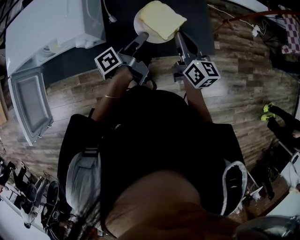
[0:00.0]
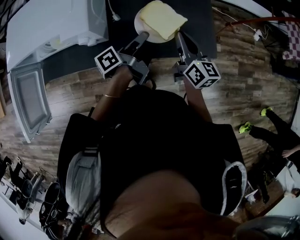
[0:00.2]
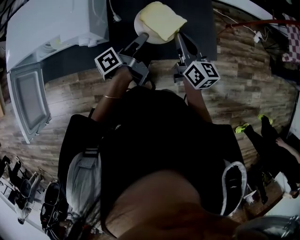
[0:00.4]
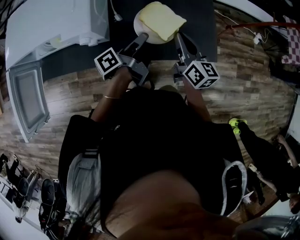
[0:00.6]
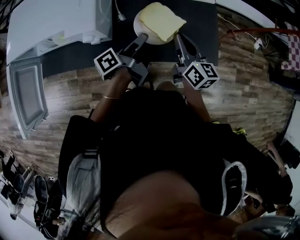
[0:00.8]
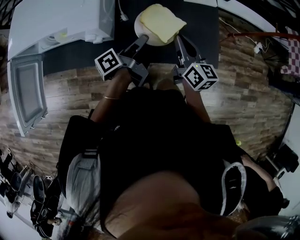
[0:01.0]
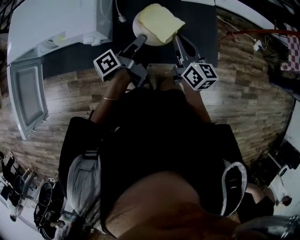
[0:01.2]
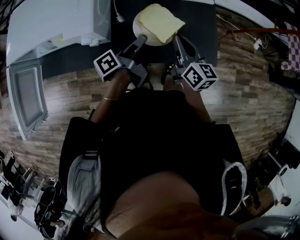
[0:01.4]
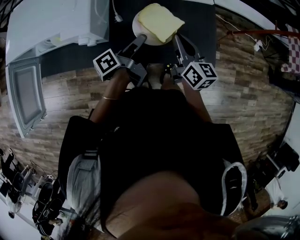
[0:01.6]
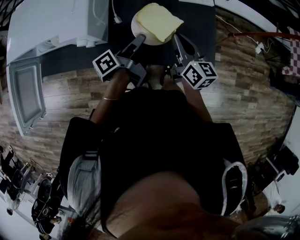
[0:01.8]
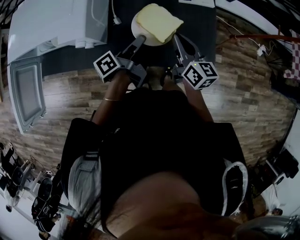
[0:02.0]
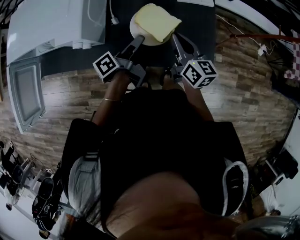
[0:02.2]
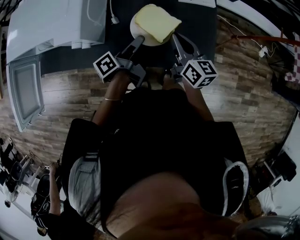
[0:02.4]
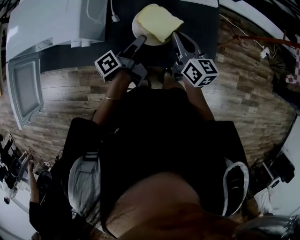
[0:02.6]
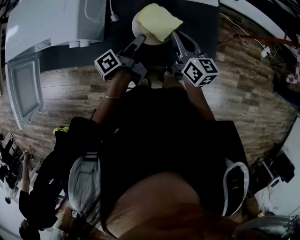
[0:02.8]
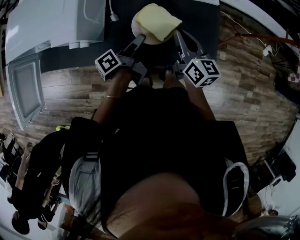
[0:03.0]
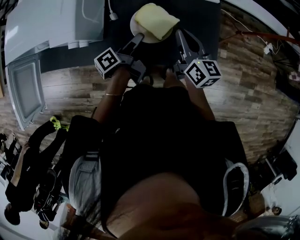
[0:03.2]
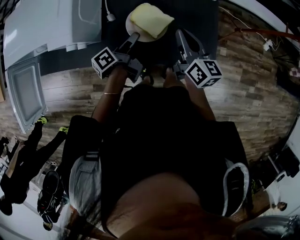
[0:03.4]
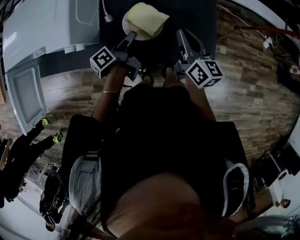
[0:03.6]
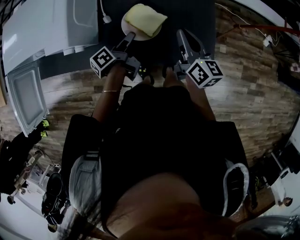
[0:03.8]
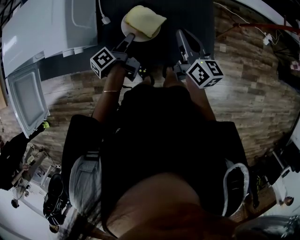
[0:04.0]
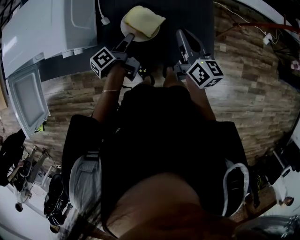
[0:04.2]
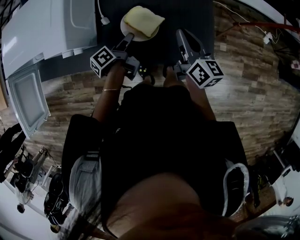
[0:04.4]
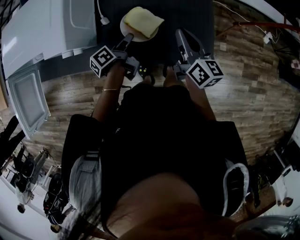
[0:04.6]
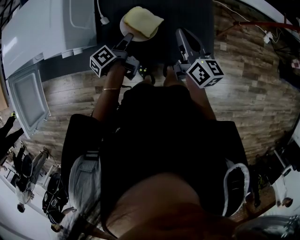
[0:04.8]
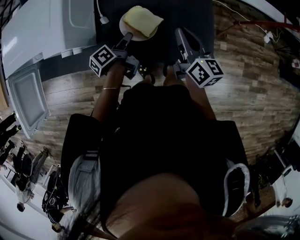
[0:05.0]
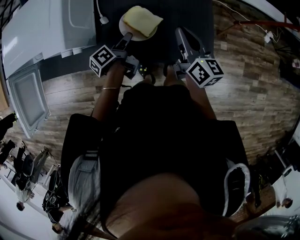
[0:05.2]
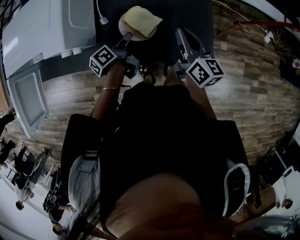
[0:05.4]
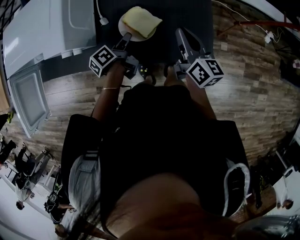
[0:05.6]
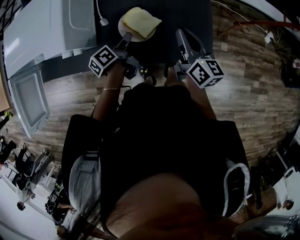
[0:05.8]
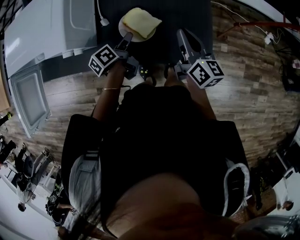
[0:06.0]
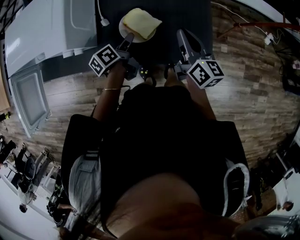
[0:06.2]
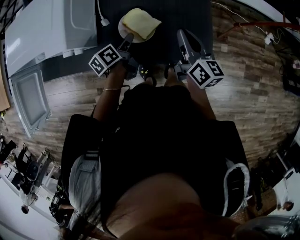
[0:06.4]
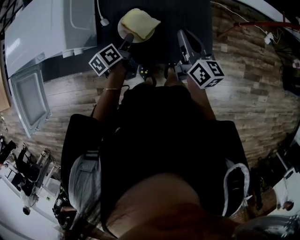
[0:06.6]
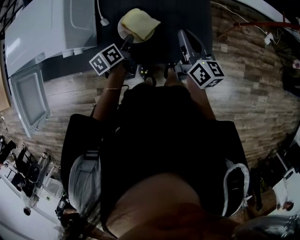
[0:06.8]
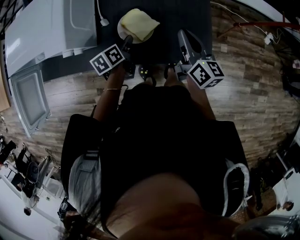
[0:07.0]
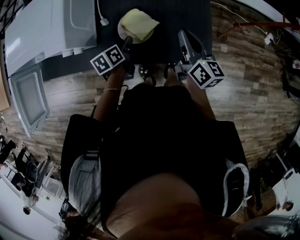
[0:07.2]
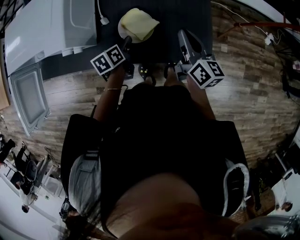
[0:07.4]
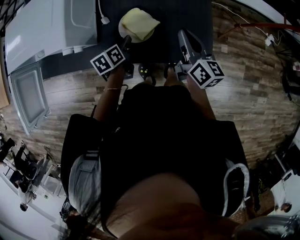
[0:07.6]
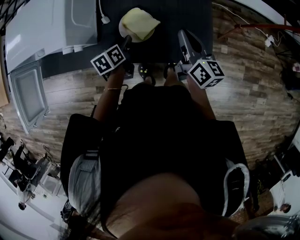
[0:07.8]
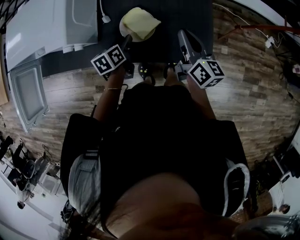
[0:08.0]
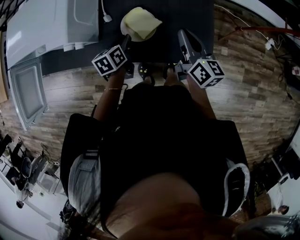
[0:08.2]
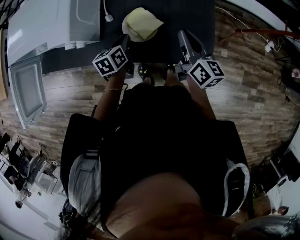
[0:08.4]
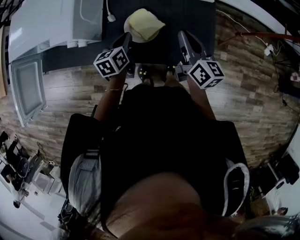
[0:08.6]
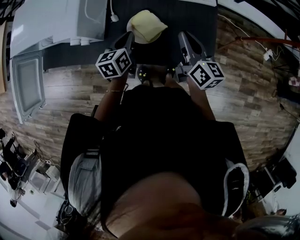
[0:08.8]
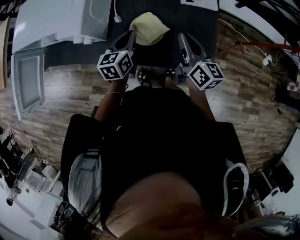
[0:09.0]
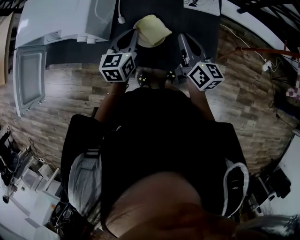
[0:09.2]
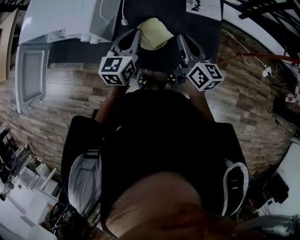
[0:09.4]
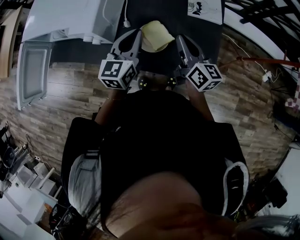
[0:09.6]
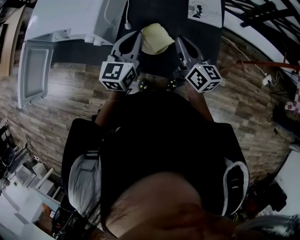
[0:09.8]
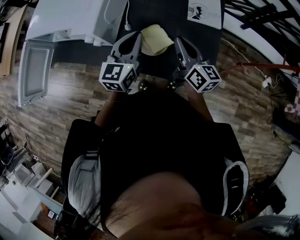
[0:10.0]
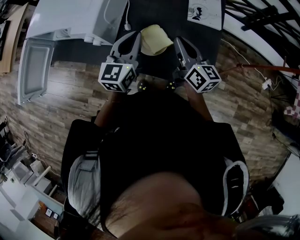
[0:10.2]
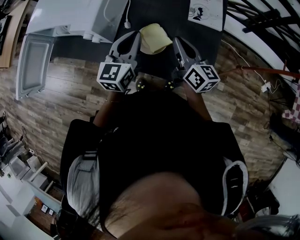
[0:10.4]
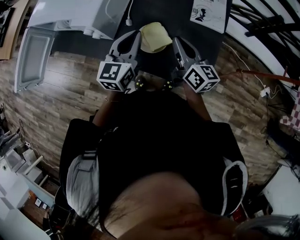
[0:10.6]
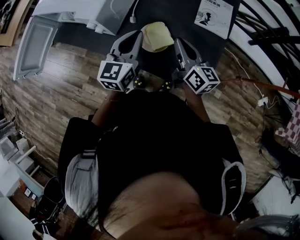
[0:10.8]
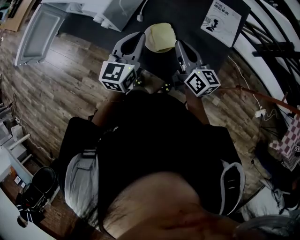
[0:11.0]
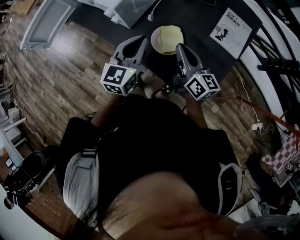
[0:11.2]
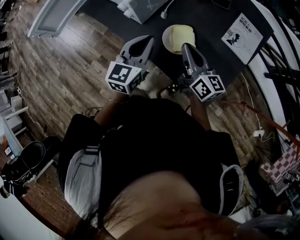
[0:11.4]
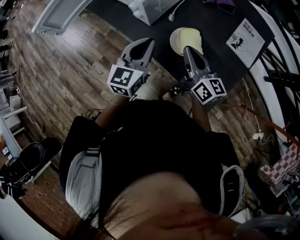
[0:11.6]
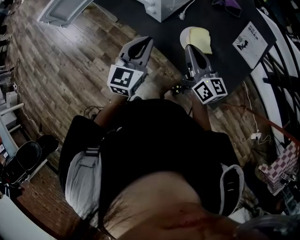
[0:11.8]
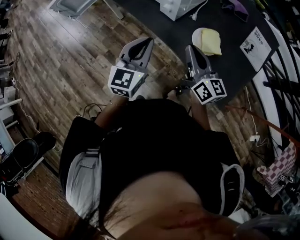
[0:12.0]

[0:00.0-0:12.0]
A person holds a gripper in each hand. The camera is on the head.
0:00.0 to 0:01.6: The grippers stay close to where they were, moving slightly.
0:01.6 to 0:03.0: There are only small adjustments of the grippers.
0:03.0 to 0:04.4: The left gripper moves downward, roughly 5 cm.
0:04.4 to 0:06.0: The grippers stay close to where they were, moving slightly.
0:06.0 to 0:07.6: The left gripper changes its angle by some 30 degrees.
0:07.6 to 0:09.0: The left gripper shifts roughly 10 cm upward, changes its angle by roughly 30 degrees, and closes.
0:09.0 to 0:10.4: The left gripper shifts approximately 10 cm upward, and rotates approximately 20 degrees.
0:10.4 to 0:12.0: The left gripper shifts approximately 25 cm to the left and backward, and turns by some 20 degrees; the right gripper shifts approximately 20 cm to the left, and swivels some 30 degrees.

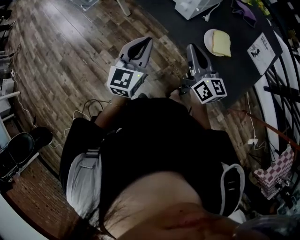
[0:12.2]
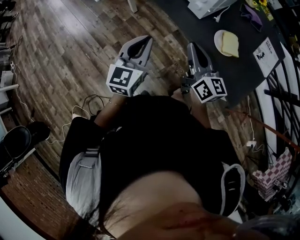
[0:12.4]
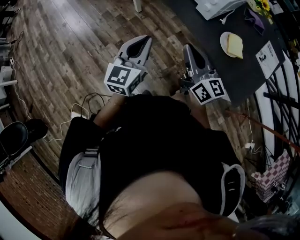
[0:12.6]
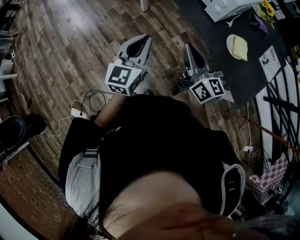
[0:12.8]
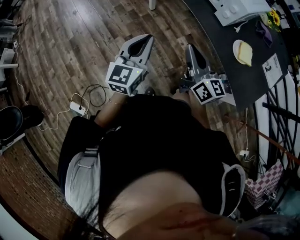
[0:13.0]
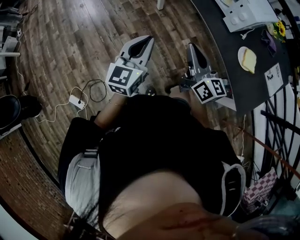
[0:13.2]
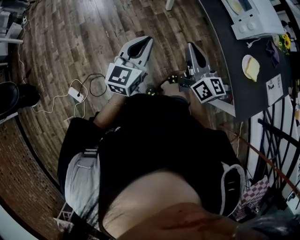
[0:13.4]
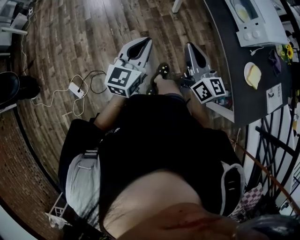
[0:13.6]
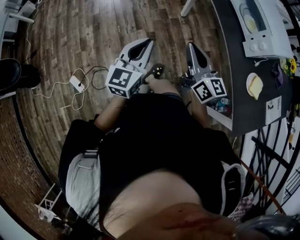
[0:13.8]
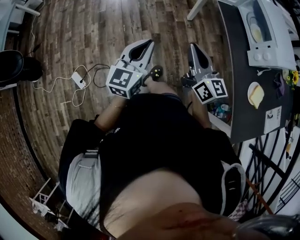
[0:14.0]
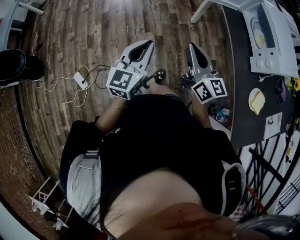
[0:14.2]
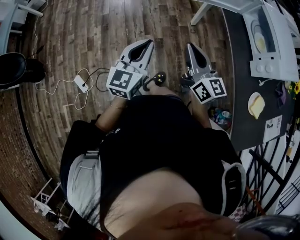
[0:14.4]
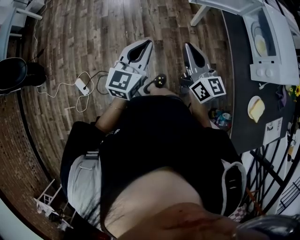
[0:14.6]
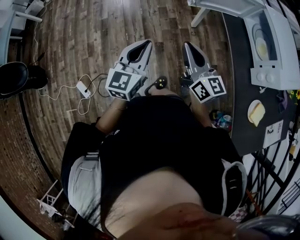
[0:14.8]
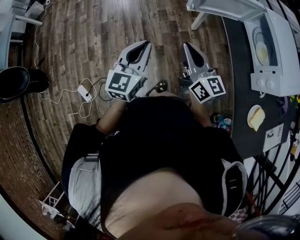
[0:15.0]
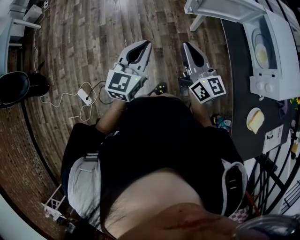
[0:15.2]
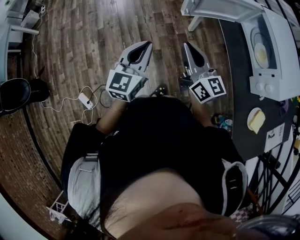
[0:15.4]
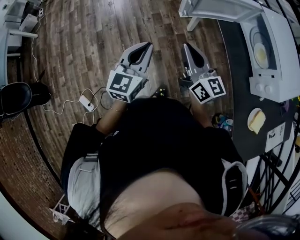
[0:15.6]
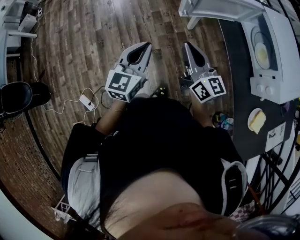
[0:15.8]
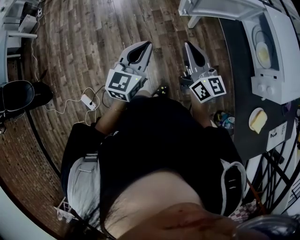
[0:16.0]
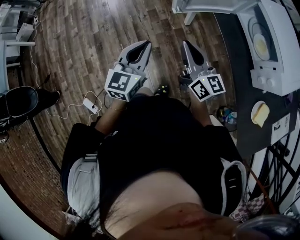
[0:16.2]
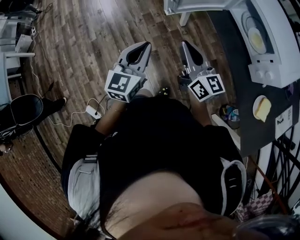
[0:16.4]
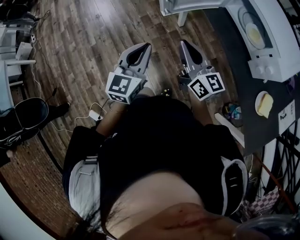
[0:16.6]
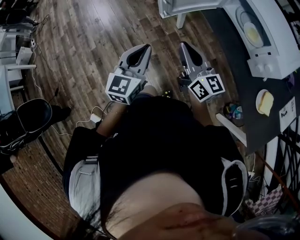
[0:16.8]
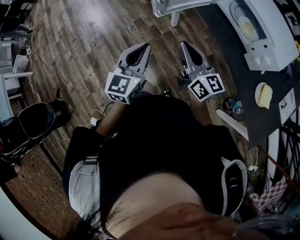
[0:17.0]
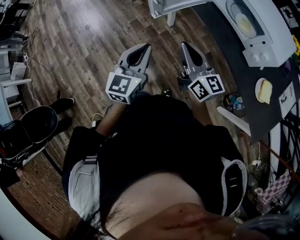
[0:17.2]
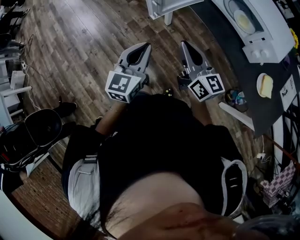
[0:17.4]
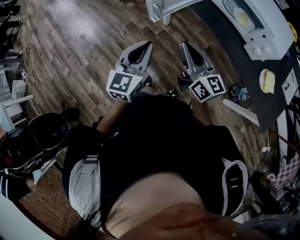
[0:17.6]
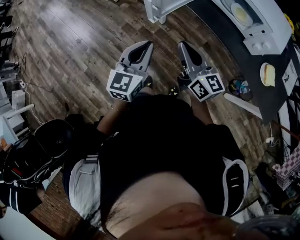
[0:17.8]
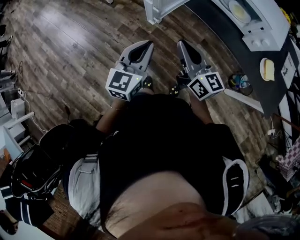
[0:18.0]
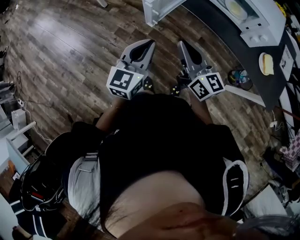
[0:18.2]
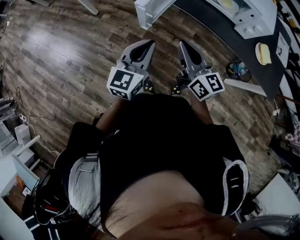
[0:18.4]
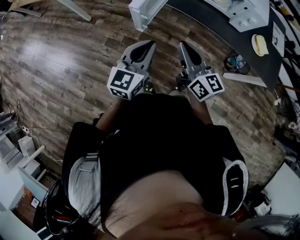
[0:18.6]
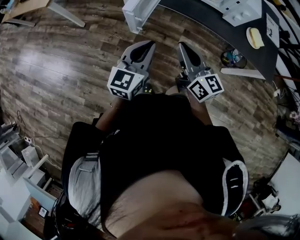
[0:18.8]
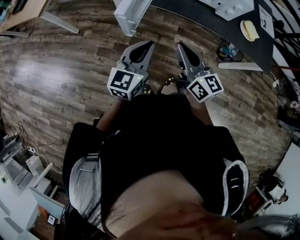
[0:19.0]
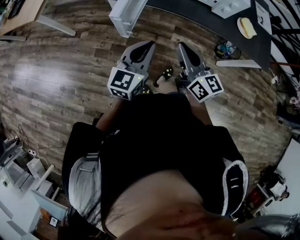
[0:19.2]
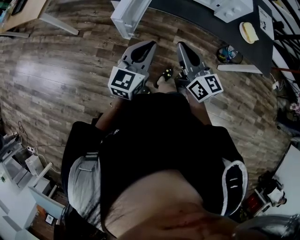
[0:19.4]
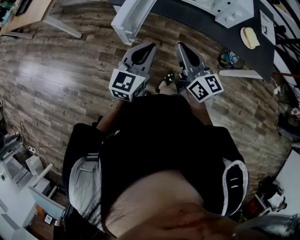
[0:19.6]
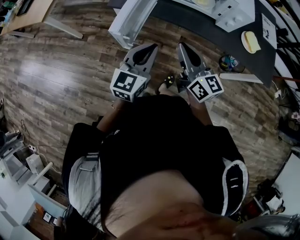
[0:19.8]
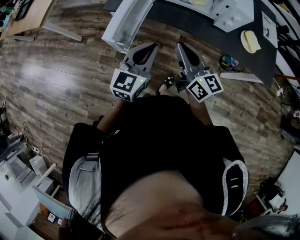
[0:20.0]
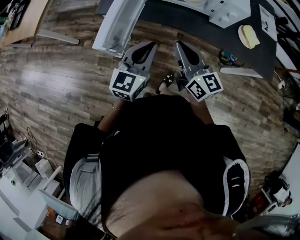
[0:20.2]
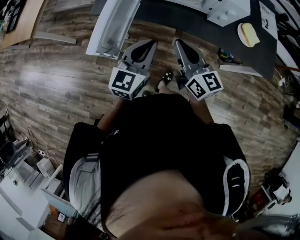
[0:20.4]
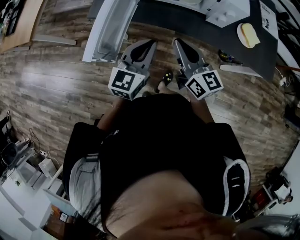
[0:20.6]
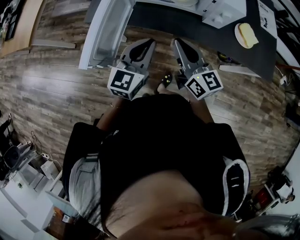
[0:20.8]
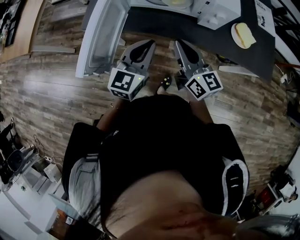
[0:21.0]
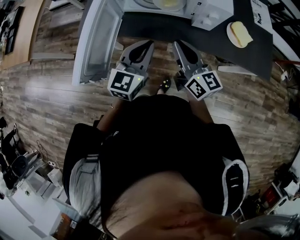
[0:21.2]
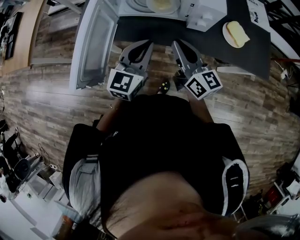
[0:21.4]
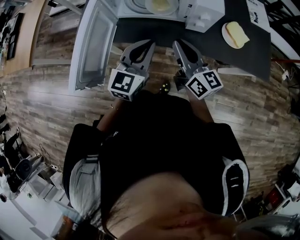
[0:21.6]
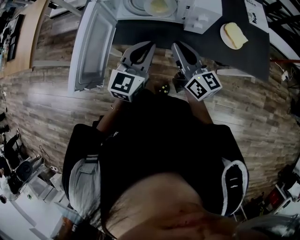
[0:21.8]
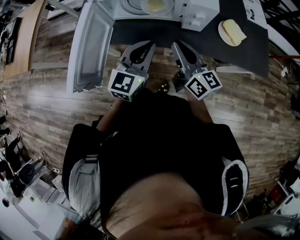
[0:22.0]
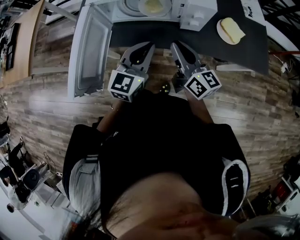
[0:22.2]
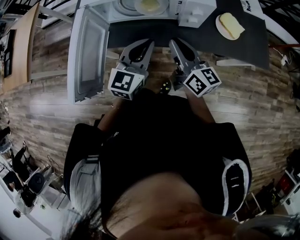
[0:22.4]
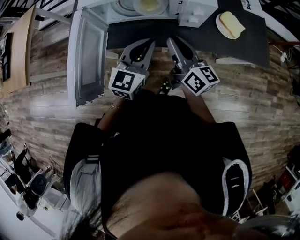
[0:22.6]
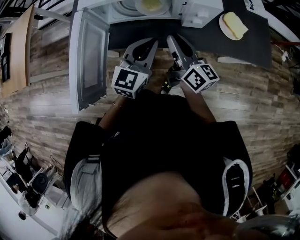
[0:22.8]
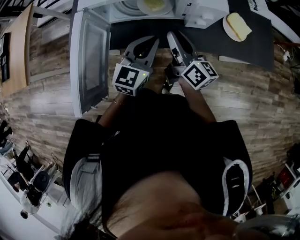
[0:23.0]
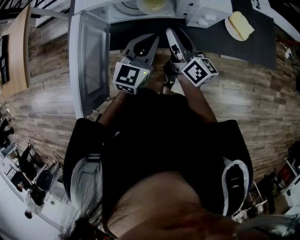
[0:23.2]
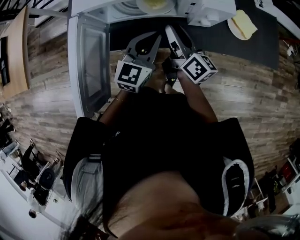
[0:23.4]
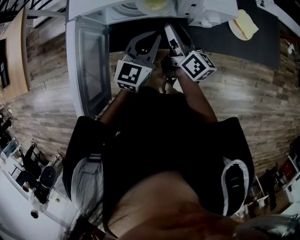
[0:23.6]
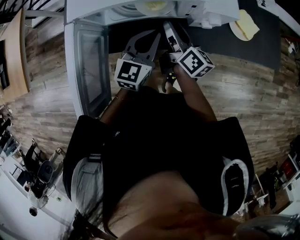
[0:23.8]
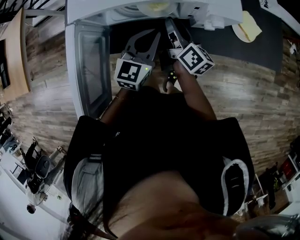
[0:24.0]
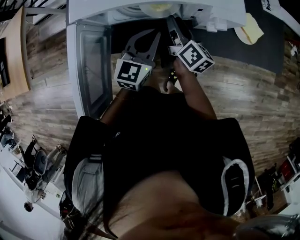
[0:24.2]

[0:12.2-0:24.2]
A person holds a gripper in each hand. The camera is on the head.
0:12.2 to 0:13.8: The right gripper moves about 30 cm, and turns by about 30 degrees. Meanwhile the left gripper moves some 35 cm, and swivels roughly 30 degrees.
0:13.8 to 0:15.2: The two grippers go some 20 cm forward.
0:15.2 to 0:16.6: The left gripper heads to the right and forward, covering some 10 cm. The right gripper moves to the right, roughly 5 cm.
0:16.6 to 0:18.2: The right gripper ends up some 5 cm from where it was, and rotates about 30 degrees, while the left gripper shifts by approximately 10 cm, and swivels some 30 degrees.
0:18.2 to 0:19.8: The two grippers go some 10 cm to the right and forward.
0:19.8 to 0:21.2: The left gripper shifts roughly 20 cm forward and to the right, while the right gripper moves to the right and forward, some 15 cm.
0:21.2 to 0:22.6: The right gripper shifts by roughly 5 cm. The left gripper shifts by approximately 5 cm.
0:22.6 to 0:24.2: The left gripper goes approximately 10 cm forward and downward. Meanwhile the right gripper travels forward and downward by some 15 cm, swivels approximately 30 degrees, and opens.
